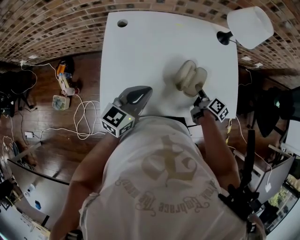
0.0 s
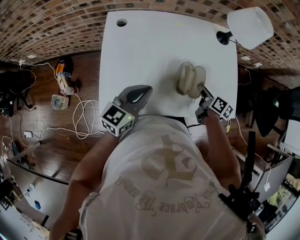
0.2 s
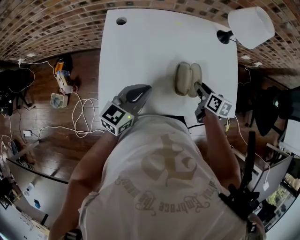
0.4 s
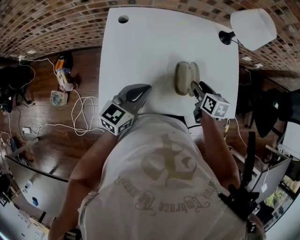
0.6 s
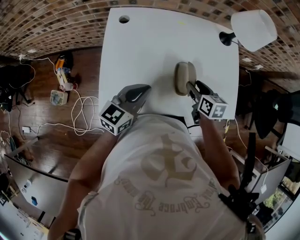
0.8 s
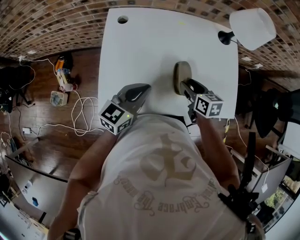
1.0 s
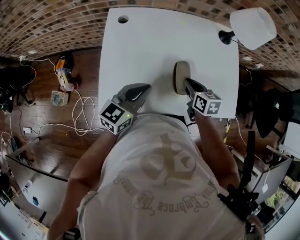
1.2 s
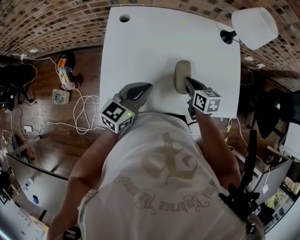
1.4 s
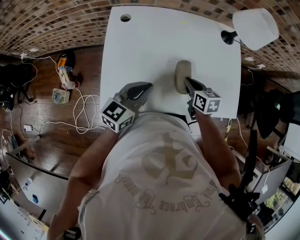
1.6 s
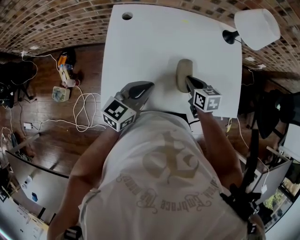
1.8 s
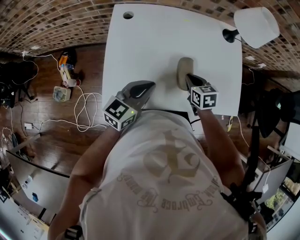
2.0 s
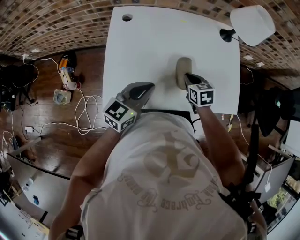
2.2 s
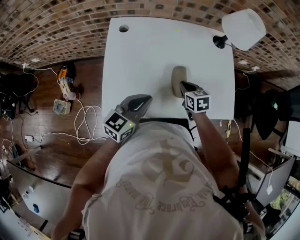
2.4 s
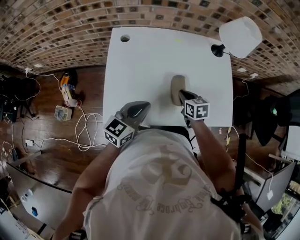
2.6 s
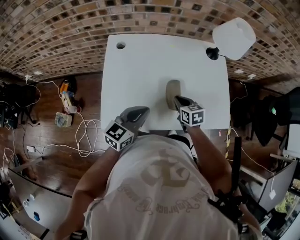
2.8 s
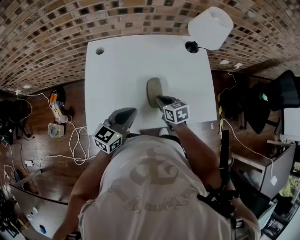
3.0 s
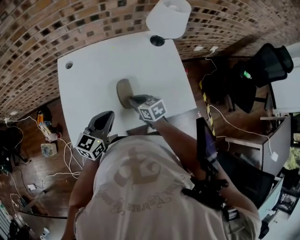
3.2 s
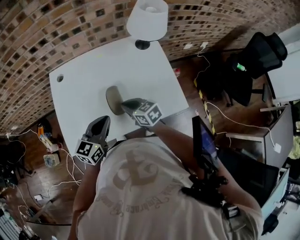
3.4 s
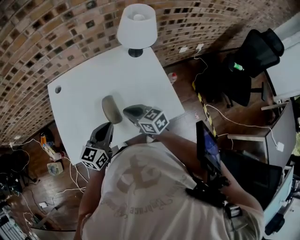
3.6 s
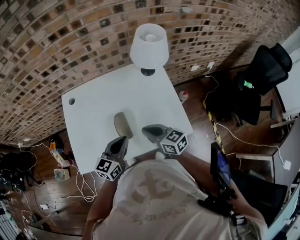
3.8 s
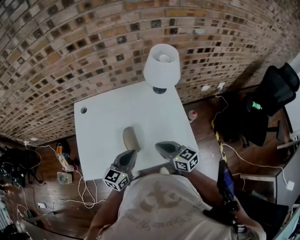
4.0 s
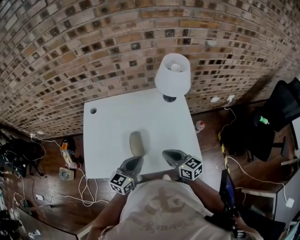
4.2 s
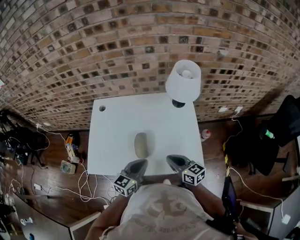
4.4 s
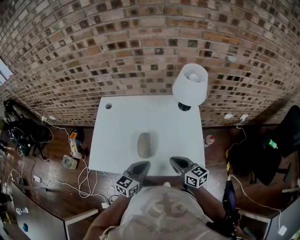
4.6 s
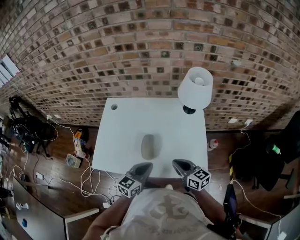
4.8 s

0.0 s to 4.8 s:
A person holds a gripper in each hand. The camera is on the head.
0.0 to 1.6 s: The right gripper travels to the left by approximately 10 cm, rolls counterclockwise, seen from behind, by some 40 degrees, and closes.
1.6 to 3.2 s: The left gripper moves to the right, roughly 5 cm.
3.2 to 4.8 s: The left gripper moves to the right, some 15 cm, while the right gripper is displaced to the right, upward and backward by roughly 20 cm, and changes its angle by some 30 degrees.

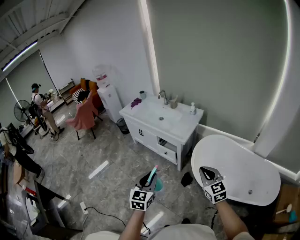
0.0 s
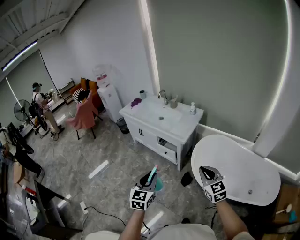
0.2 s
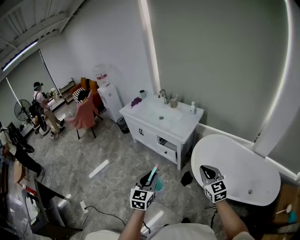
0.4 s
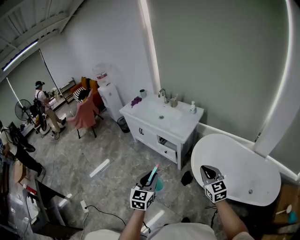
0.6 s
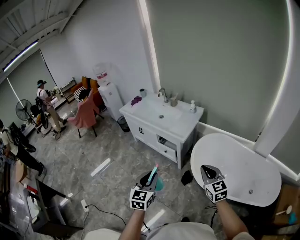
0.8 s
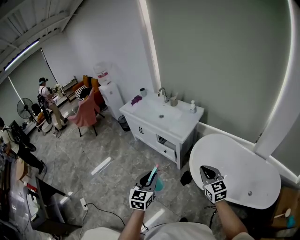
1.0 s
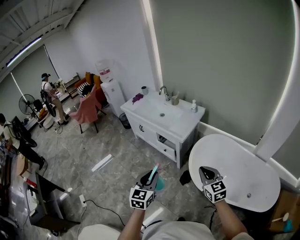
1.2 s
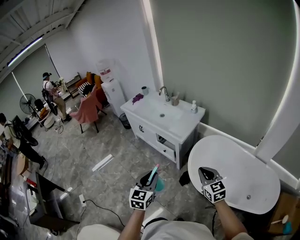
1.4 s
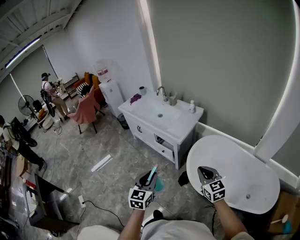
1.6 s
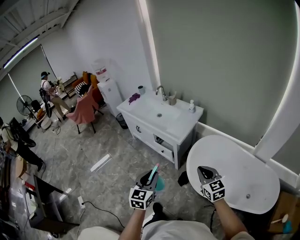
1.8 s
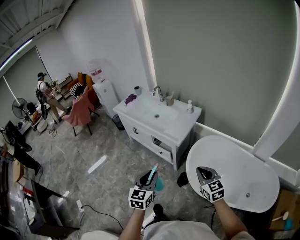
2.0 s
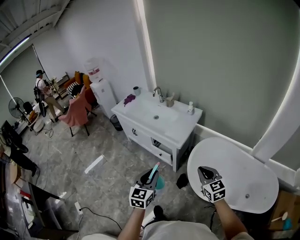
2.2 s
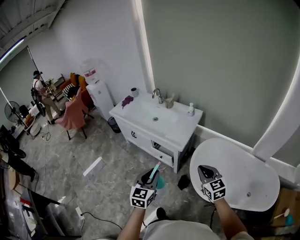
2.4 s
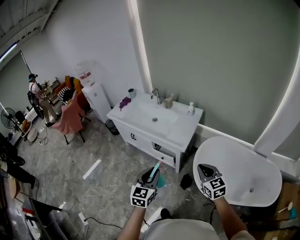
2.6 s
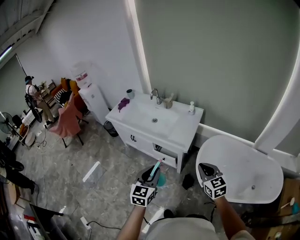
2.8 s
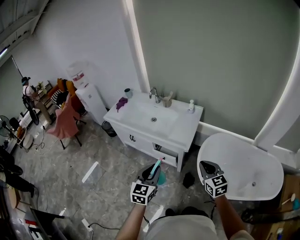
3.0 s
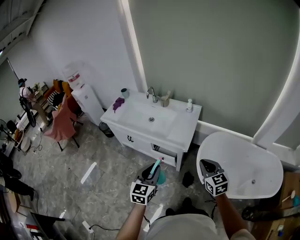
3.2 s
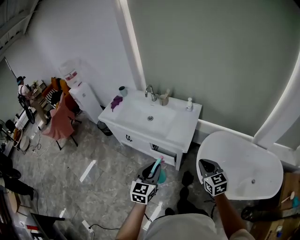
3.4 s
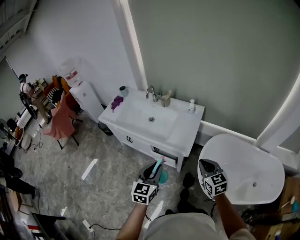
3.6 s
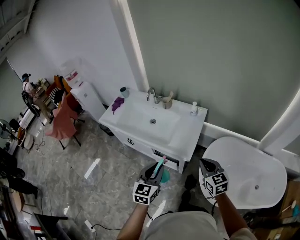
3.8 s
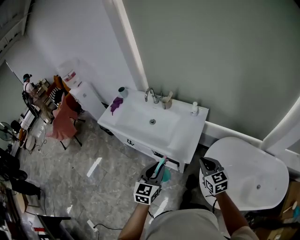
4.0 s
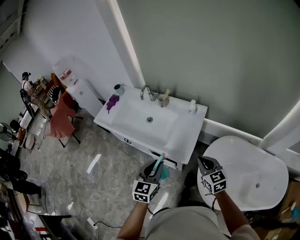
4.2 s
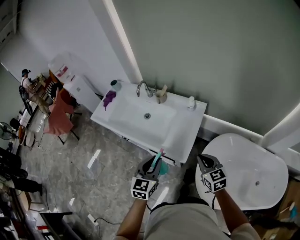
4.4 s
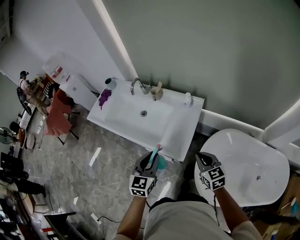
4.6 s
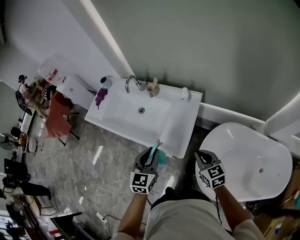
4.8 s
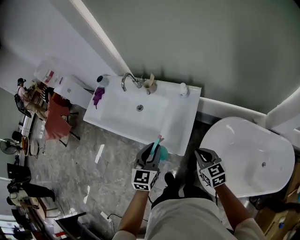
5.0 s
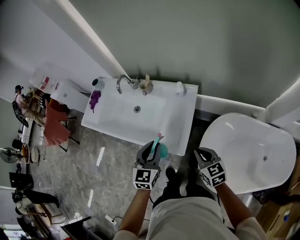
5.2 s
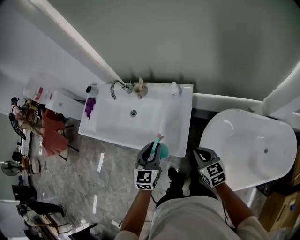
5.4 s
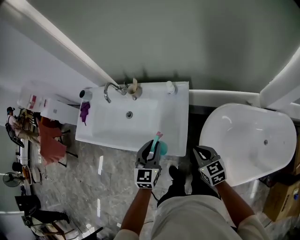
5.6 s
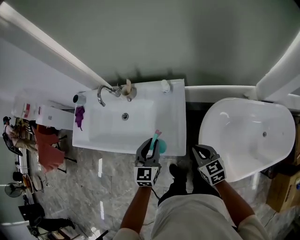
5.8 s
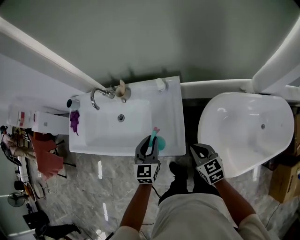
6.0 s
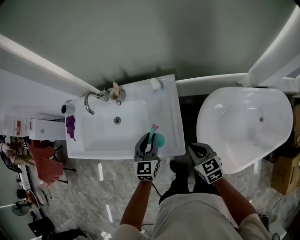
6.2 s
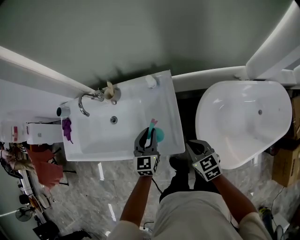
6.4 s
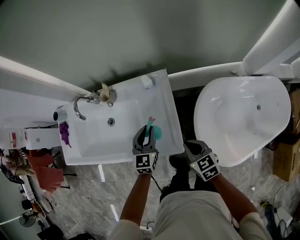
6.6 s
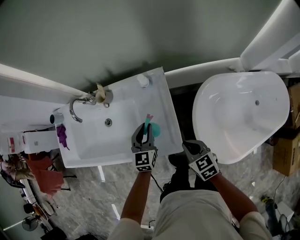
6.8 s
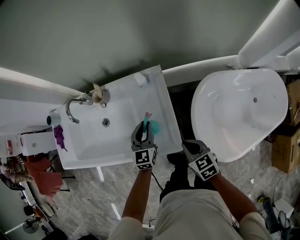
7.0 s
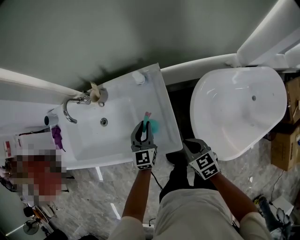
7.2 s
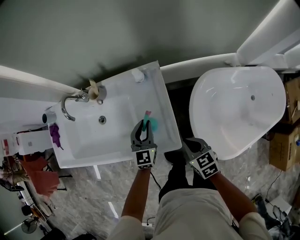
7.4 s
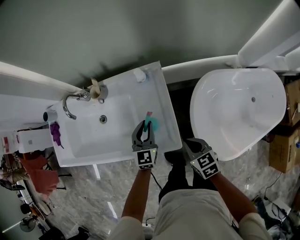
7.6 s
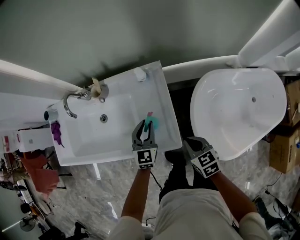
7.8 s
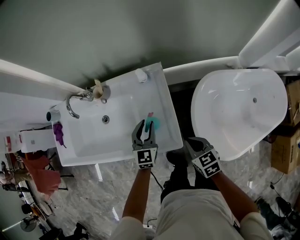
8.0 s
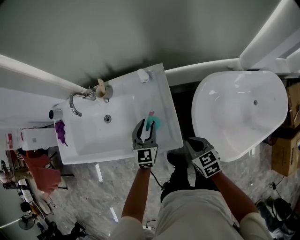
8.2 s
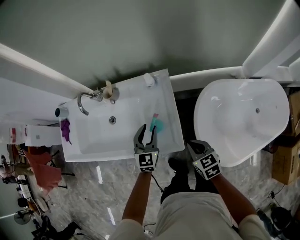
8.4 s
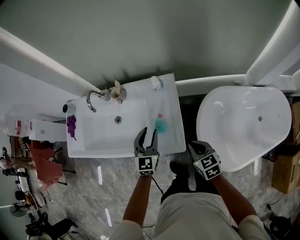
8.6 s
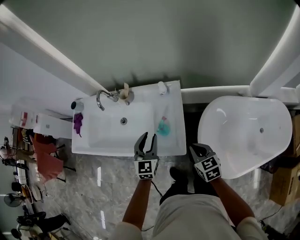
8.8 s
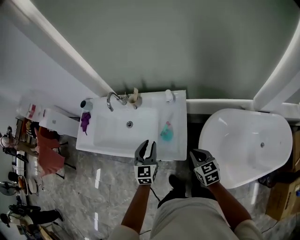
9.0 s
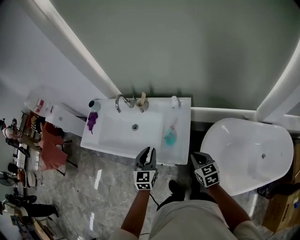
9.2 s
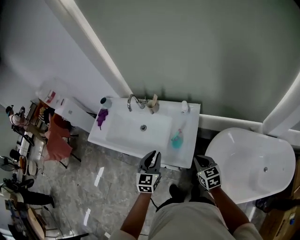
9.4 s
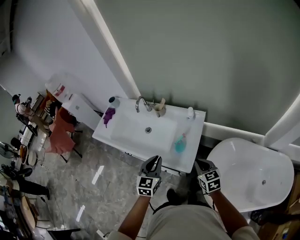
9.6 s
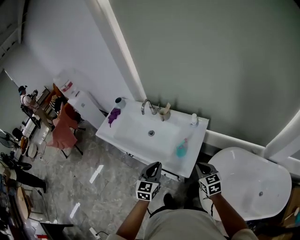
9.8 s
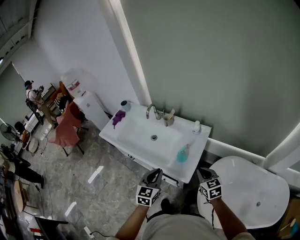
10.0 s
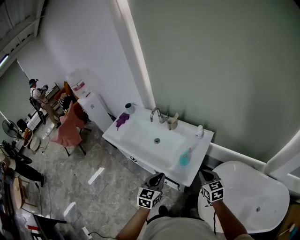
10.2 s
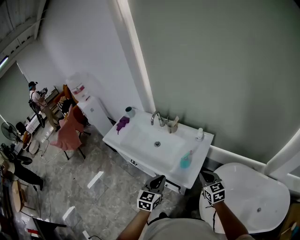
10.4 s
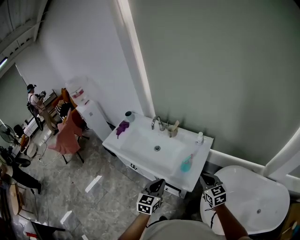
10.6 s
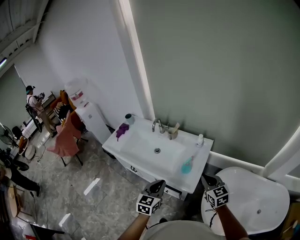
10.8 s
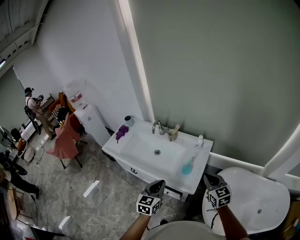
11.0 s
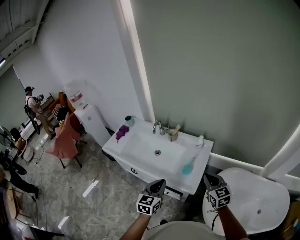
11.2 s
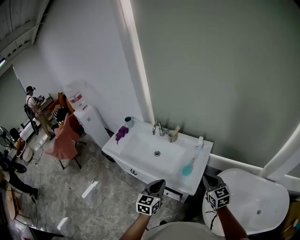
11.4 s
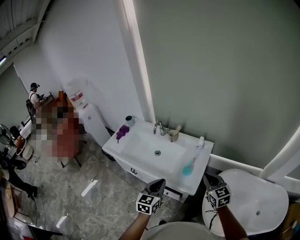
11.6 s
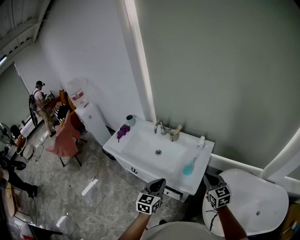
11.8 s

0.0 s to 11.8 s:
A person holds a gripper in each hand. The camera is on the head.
0.0 to 1.4 s: The two grippers go approximately 5 cm to the right.
1.4 to 3.0 s: Both grippers move forward and to the left, roughly 25 cm.
3.0 to 4.4 s: Both grippers travel together forward, about 25 cm.
4.4 to 6.0 s: The right gripper goes approximately 10 cm downward and forward. The left gripper moves forward and downward, about 20 cm.
6.0 to 7.4 s: The right gripper heads downward, covering approximately 10 cm, while the left gripper moves downward and forward, some 15 cm.
7.4 to 8.8 s: The right gripper heads upward, covering approximately 10 cm, while the left gripper goes some 15 cm upward and backward.
8.8 to 10.4 s: The left gripper is displaced backward, upward and to the left by roughly 20 cm, and closes, while the right gripper heads upward, covering about 10 cm, and changes its angle by approximately 20 degrees.
10.4 to 11.8 s: The left gripper moves about 5 cm. Meanwhile the right gripper heads upward, covering some 5 cm.

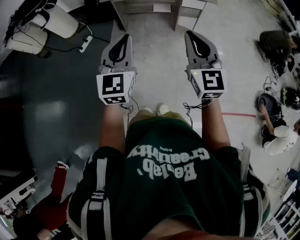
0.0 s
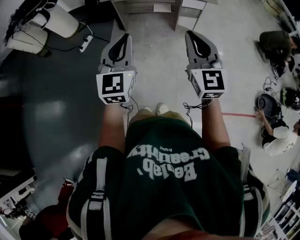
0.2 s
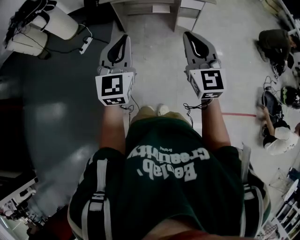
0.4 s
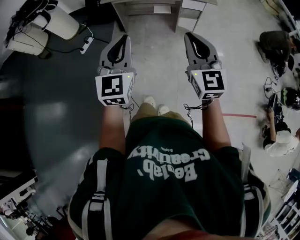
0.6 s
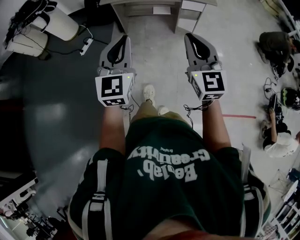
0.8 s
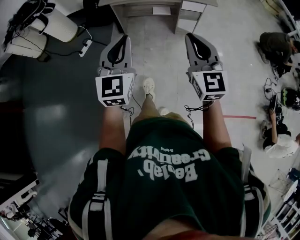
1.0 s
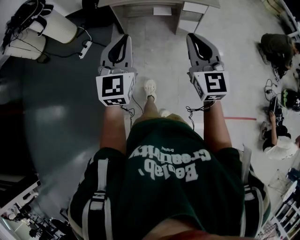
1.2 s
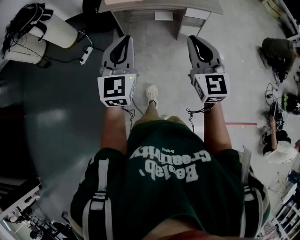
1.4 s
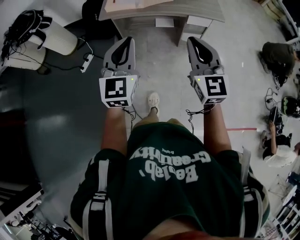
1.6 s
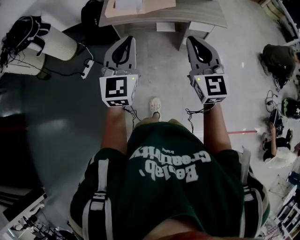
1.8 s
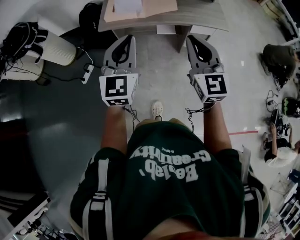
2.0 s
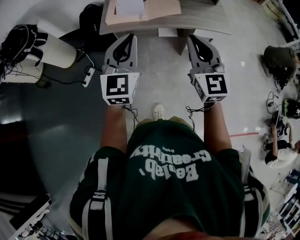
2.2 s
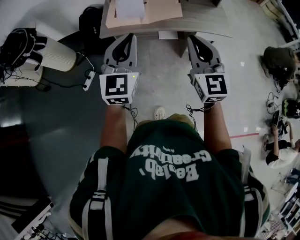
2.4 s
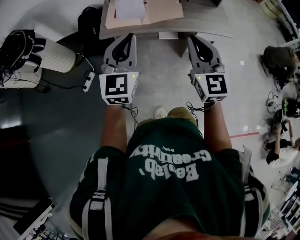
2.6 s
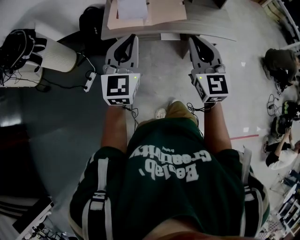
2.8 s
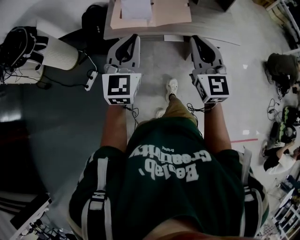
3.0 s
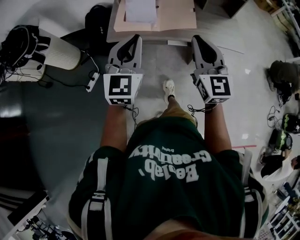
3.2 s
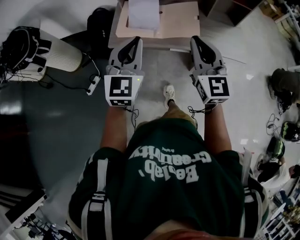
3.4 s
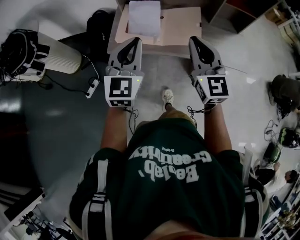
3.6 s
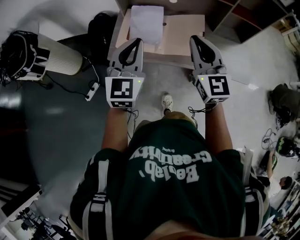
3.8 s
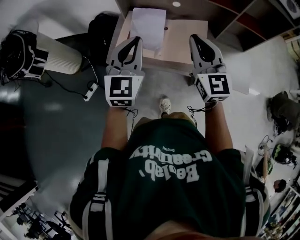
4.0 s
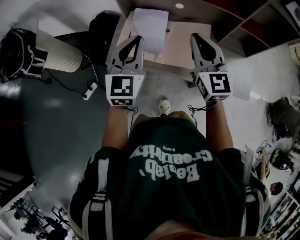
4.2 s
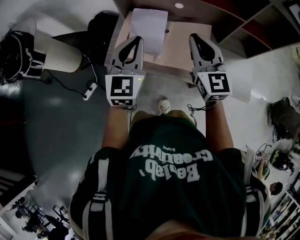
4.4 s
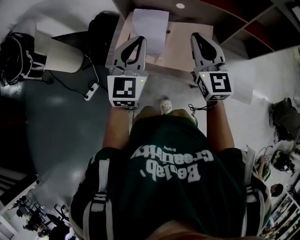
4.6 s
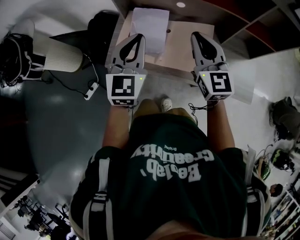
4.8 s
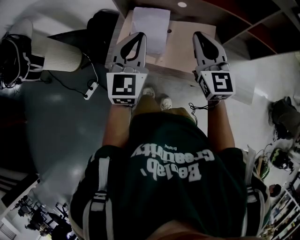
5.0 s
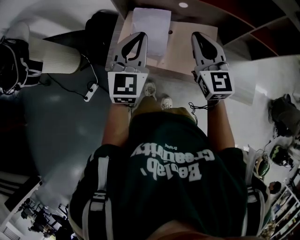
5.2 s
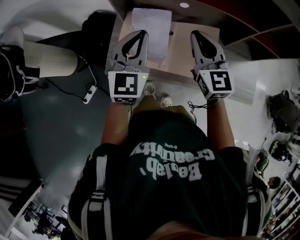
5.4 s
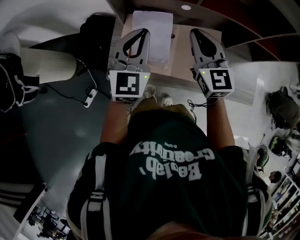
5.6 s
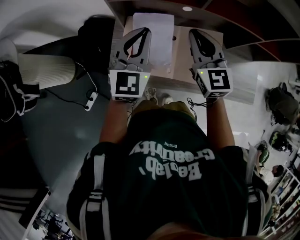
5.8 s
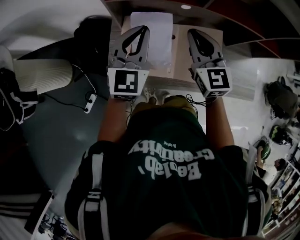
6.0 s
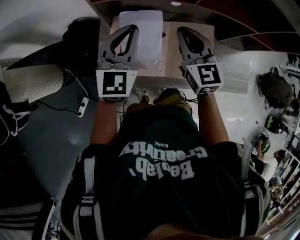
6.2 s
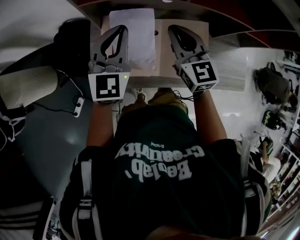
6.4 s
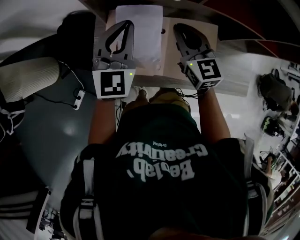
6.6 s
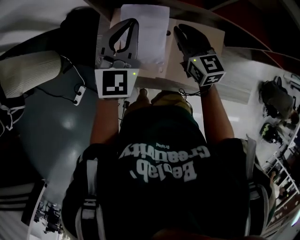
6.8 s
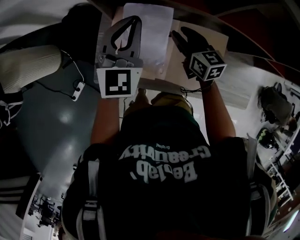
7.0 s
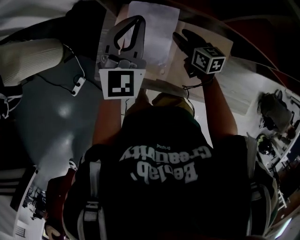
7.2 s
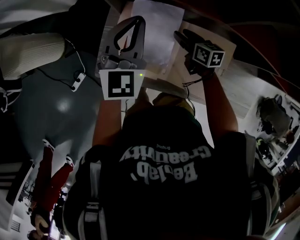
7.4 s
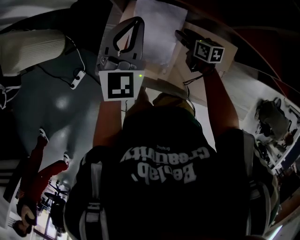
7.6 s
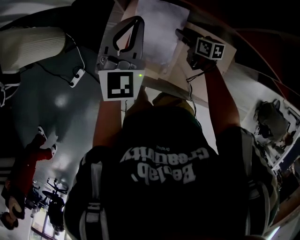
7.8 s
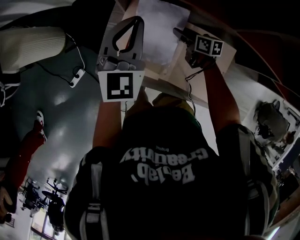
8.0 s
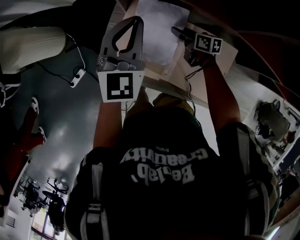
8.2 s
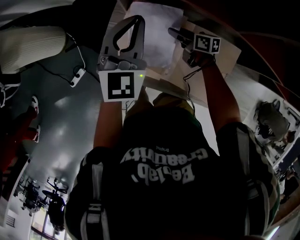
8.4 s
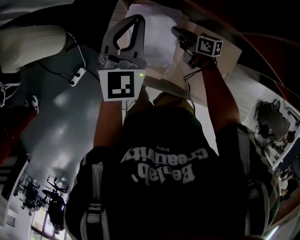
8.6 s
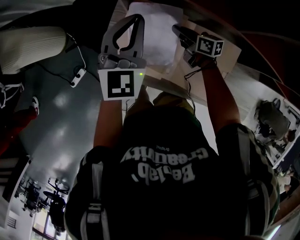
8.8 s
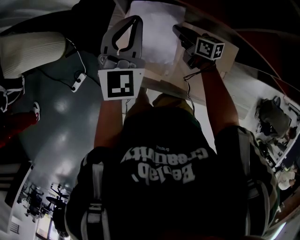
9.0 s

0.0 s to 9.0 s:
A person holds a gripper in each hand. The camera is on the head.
0.0 to 1.6 s: Both grippers move forward, roughly 10 cm.
1.6 to 3.0 s: The grippers both shift forward by about 15 cm.
3.0 to 4.4 s: The grippers both shift forward by some 15 cm.
4.4 to 6.0 s: Both grippers move forward, roughly 10 cm.
6.0 to 7.6 s: The right gripper shifts about 30 cm downward, swivels roughly 50 degrees, and opens its fingers. The left gripper moves some 10 cm.
7.6 to 9.0 s: The right gripper shifts by roughly 5 cm, and closes.
